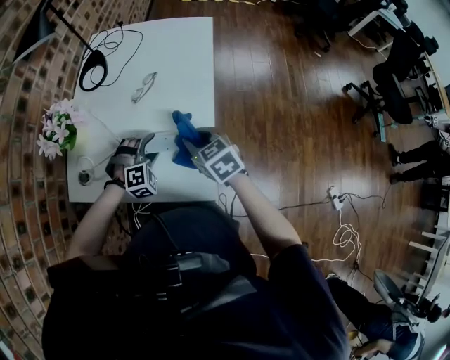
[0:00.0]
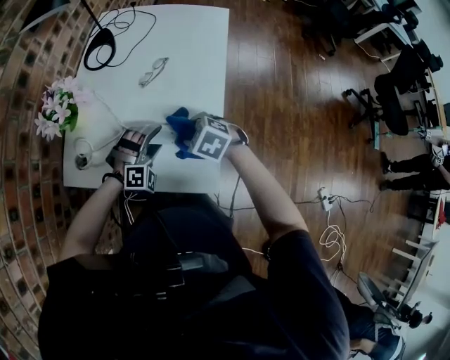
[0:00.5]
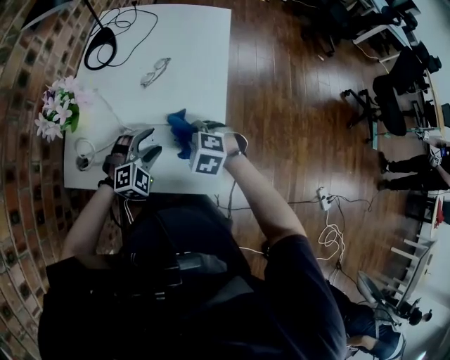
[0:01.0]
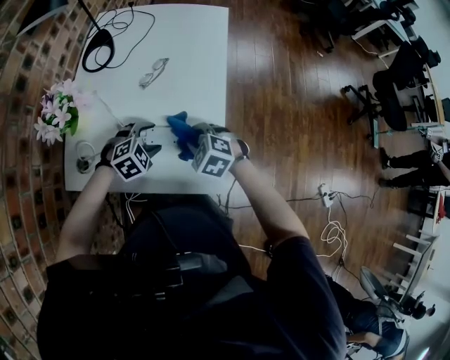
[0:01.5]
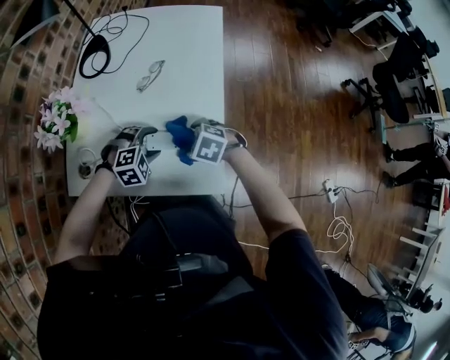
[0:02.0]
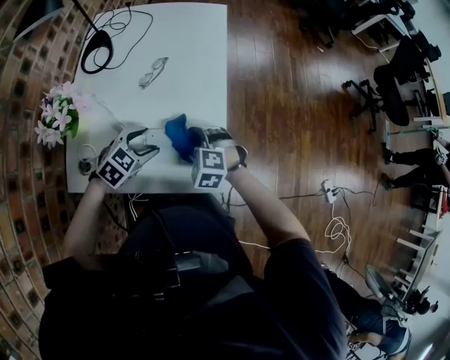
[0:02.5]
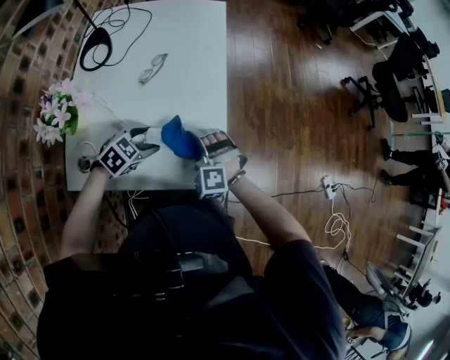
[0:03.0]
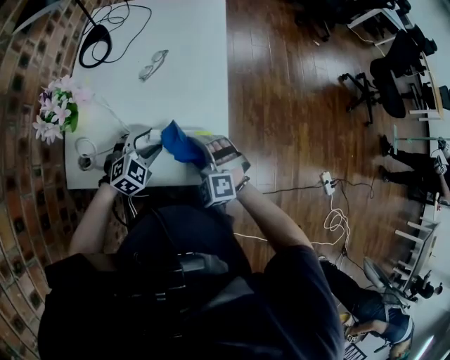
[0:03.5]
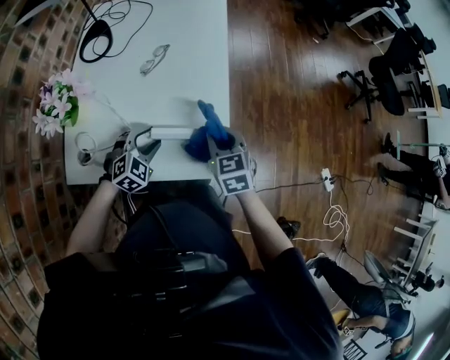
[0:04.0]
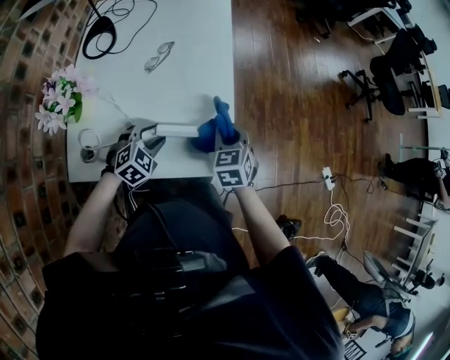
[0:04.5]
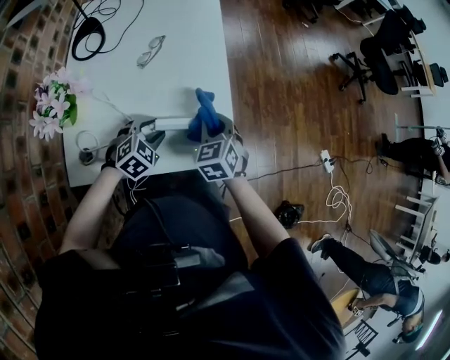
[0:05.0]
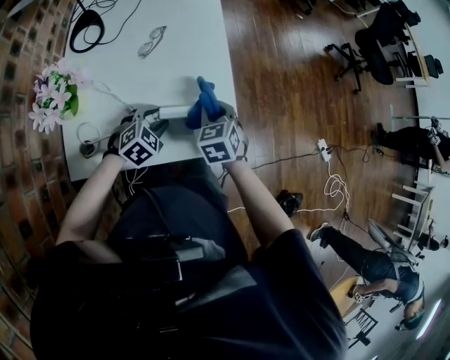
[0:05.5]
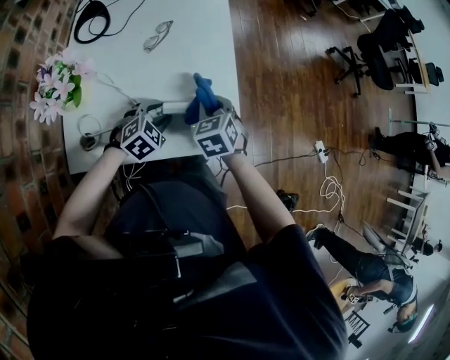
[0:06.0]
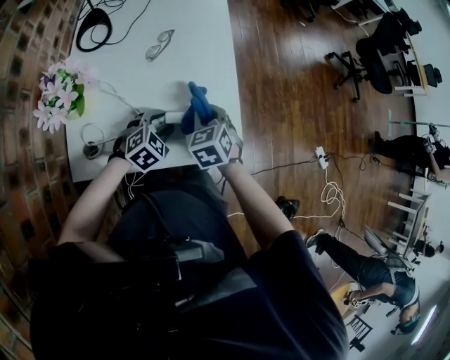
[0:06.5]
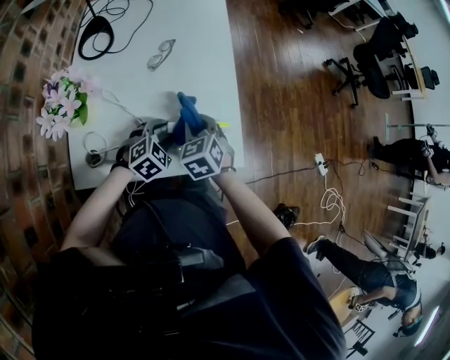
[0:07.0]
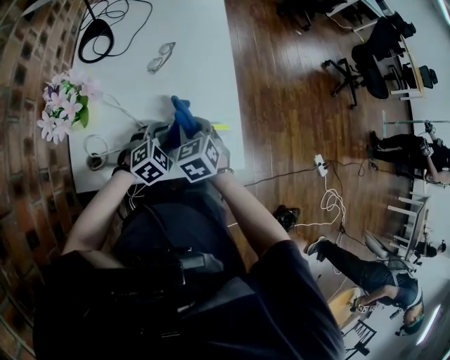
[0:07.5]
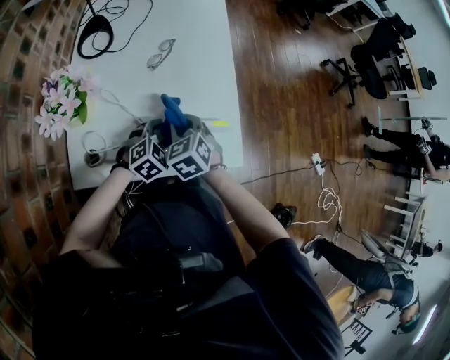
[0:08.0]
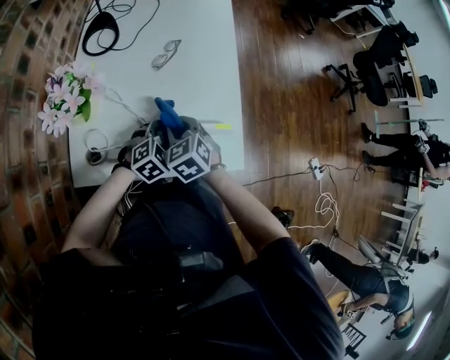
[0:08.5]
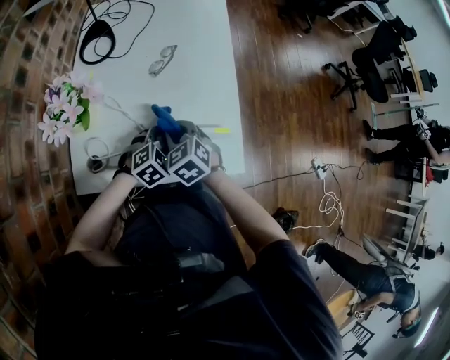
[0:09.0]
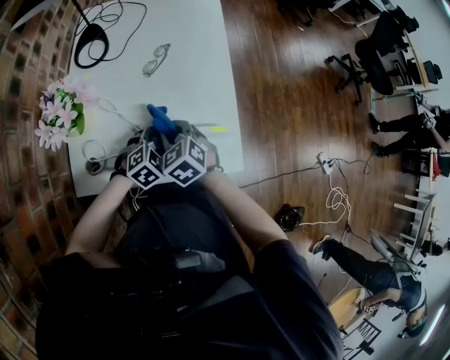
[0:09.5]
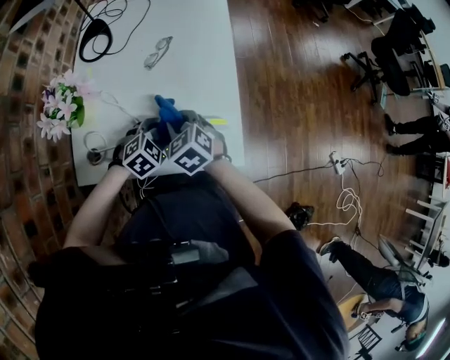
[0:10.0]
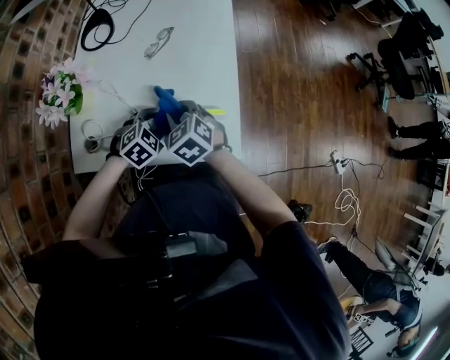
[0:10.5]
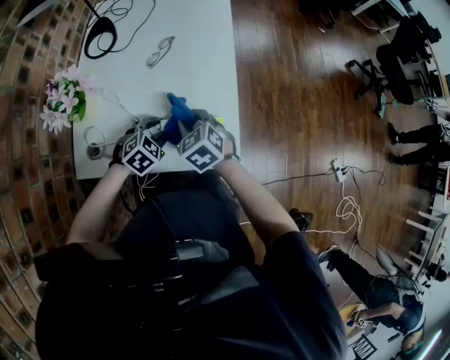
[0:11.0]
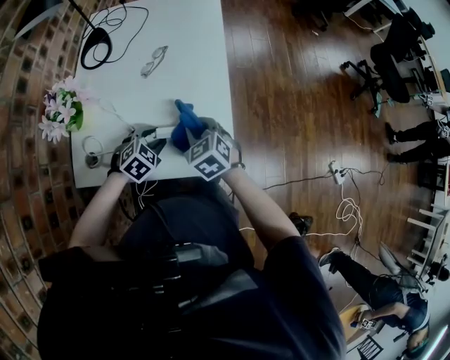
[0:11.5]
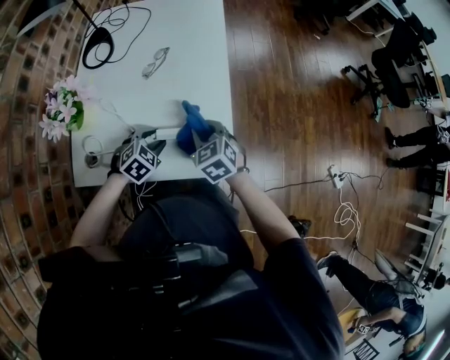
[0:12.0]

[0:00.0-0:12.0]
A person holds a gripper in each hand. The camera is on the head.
0:00.0 to 0:02.0: The left gripper rotates some 20 degrees; the right gripper is displaced downward by about 10 cm, turns by approximately 40 degrees, and opens.
0:02.0 to 0:04.0: The right gripper heads upward, covering approximately 10 cm, turns by approximately 60 degrees, and closes up. The left gripper swivels some 20 degrees.
0:04.0 to 0:06.0: The right gripper heads to the left, covering some 5 cm.
0:06.0 to 0:08.0: The right gripper heads to the left, covering about 10 cm.
0:08.0 to 0:10.0: The grippers move only a little.
0:10.0 to 0:12.0: The right gripper moves to the right, approximately 10 cm.

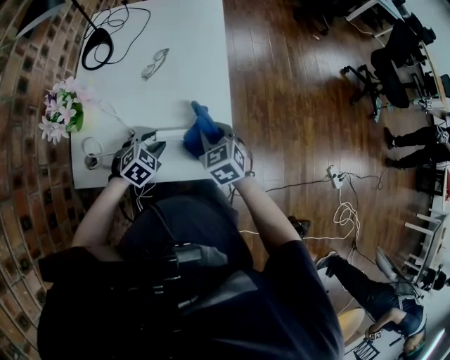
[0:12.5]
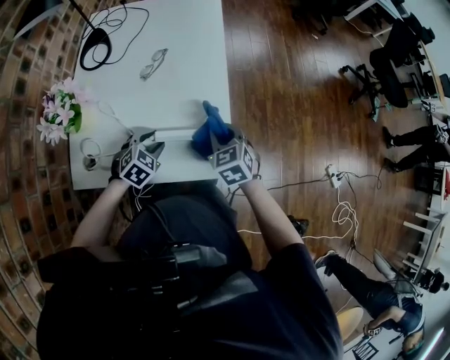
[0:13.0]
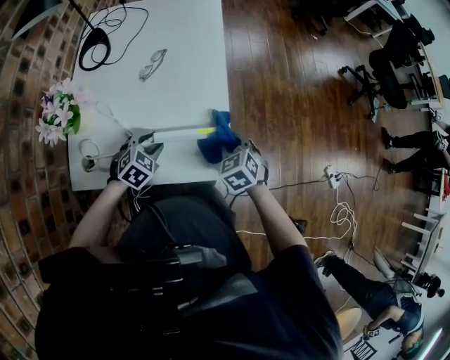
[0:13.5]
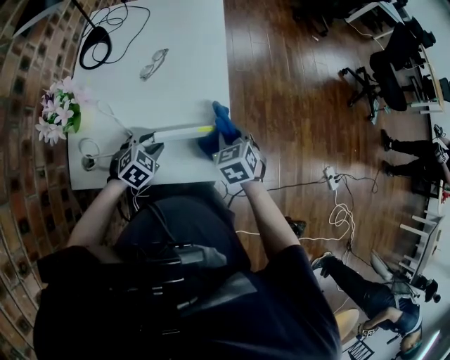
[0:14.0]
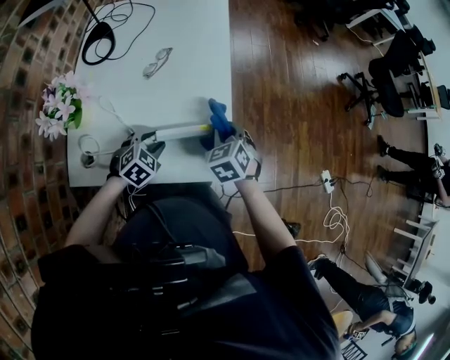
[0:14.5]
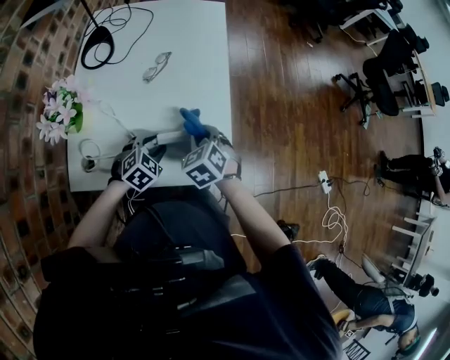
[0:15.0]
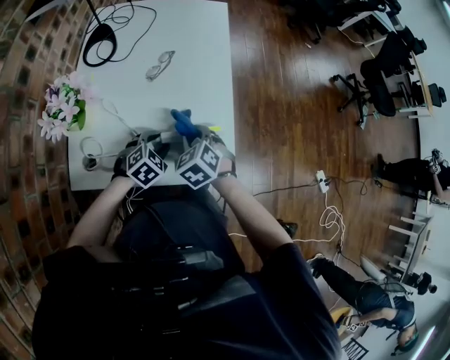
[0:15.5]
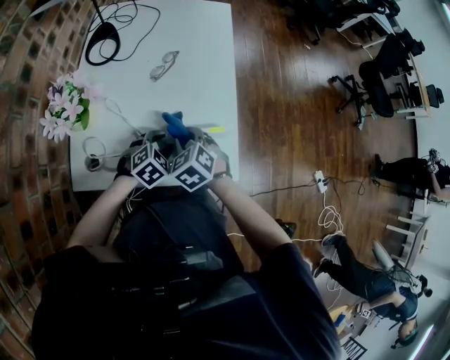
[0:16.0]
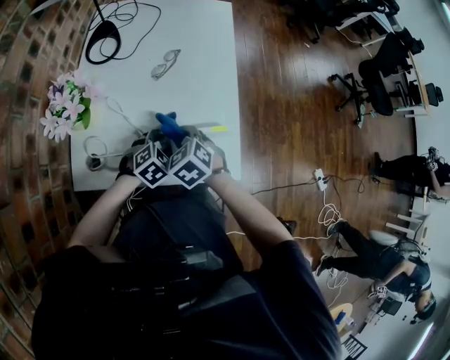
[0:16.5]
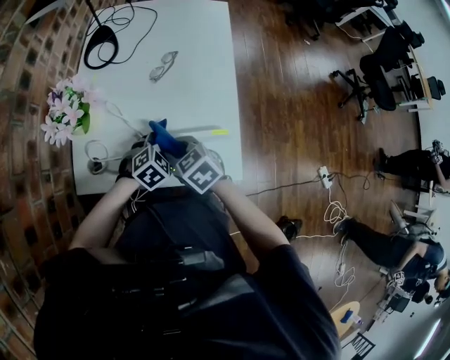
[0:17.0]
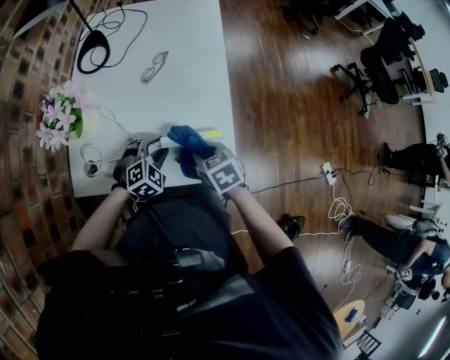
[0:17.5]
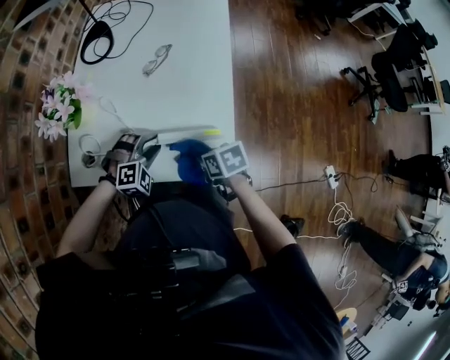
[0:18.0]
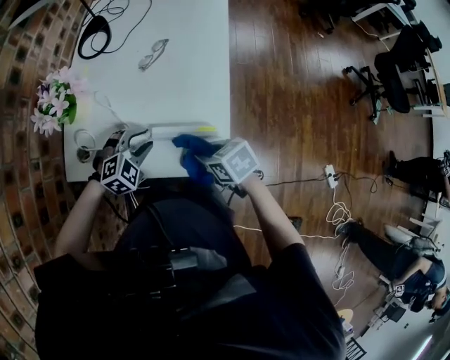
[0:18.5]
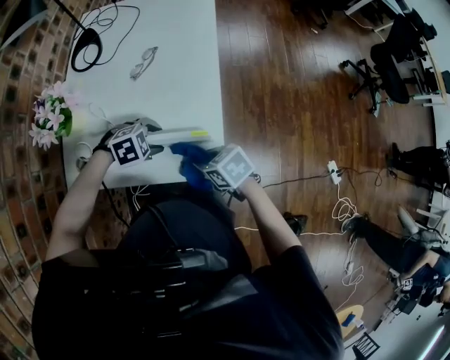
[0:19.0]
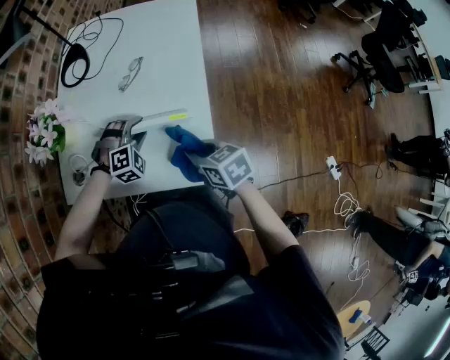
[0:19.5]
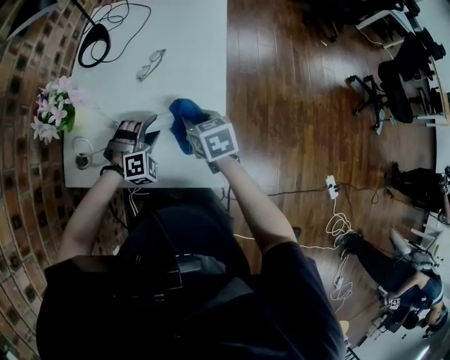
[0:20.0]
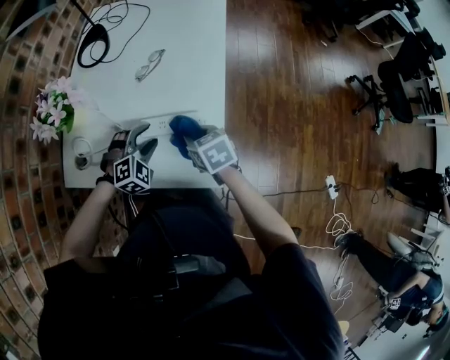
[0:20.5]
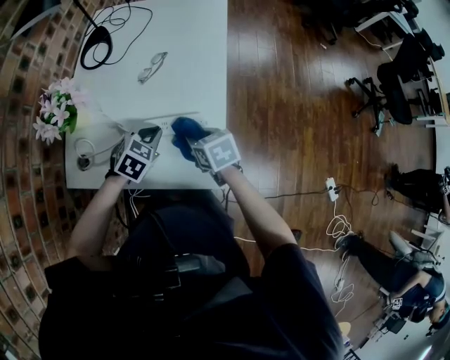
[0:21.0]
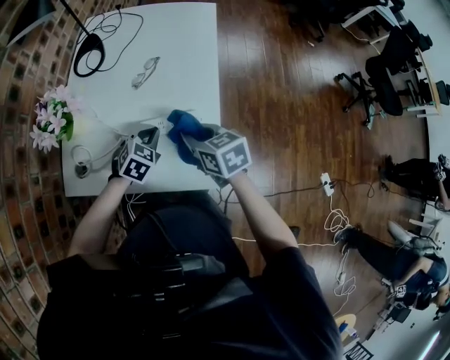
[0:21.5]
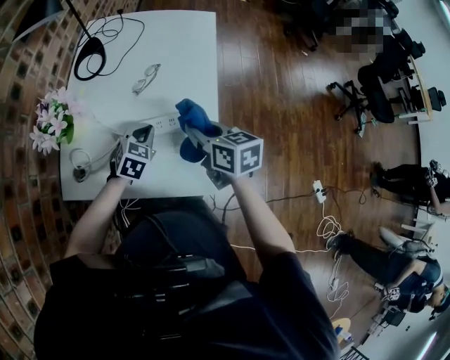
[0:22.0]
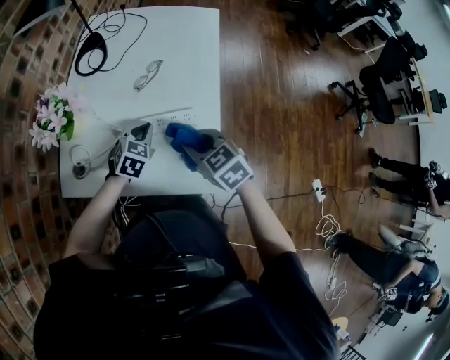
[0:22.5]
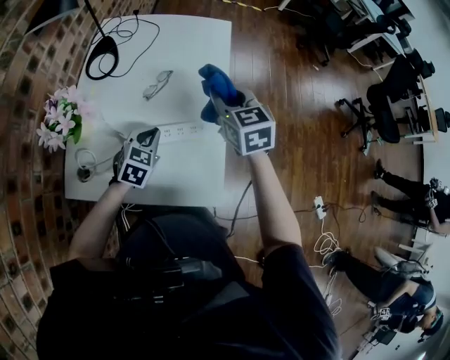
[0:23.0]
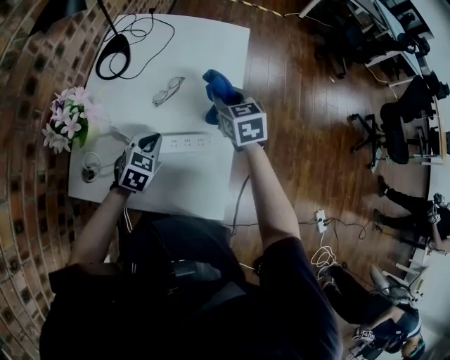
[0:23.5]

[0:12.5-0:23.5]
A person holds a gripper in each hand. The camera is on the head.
0:14.5 to 0:16.0: The right gripper shifts approximately 15 cm to the left.
0:16.0 to 0:18.0: The left gripper turns by about 30 degrees, while the right gripper shifts by approximately 15 cm, and rotates around the line of its fingers by some 40 degrees, clockwise from behind.
0:18.0 to 0:20.0: The left gripper changes place by approximately 10 cm. Meanwhile the right gripper shifts by roughly 15 cm, and turns by some 30 degrees.
0:20.0 to 0:21.5: The left gripper rolls counterclockwise, seen from behind, by about 50 degrees, and closes; the right gripper moves approximately 5 cm.
0:21.5 to 0:23.5: The right gripper shifts some 20 cm forward, and swivels some 20 degrees, while the left gripper is displaced forward by about 5 cm.

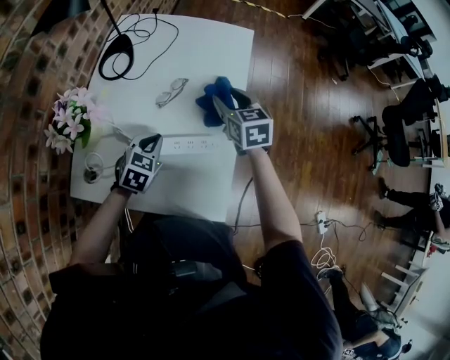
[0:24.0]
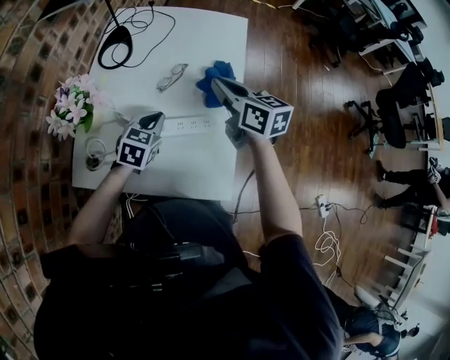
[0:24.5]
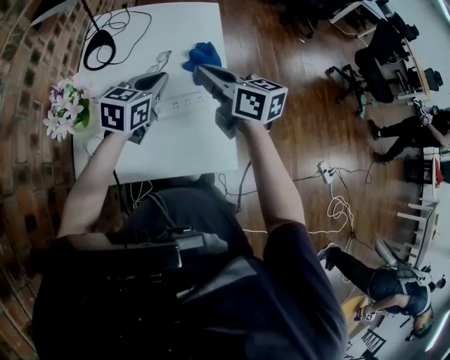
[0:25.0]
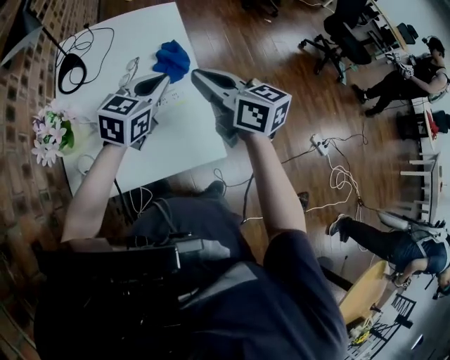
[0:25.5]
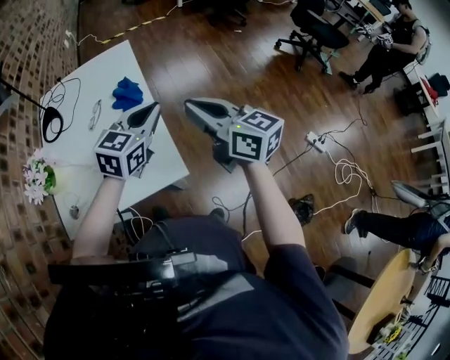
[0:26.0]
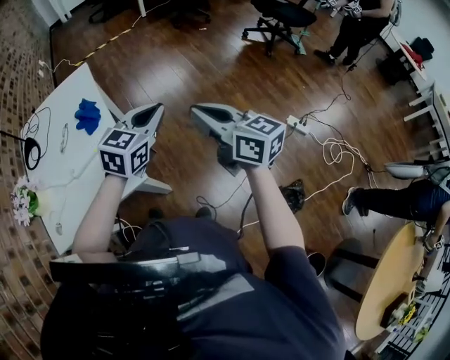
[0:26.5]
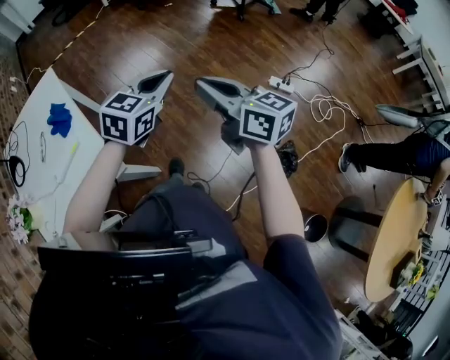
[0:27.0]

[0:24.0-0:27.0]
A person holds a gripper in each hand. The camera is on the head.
0:24.0 to 0:25.5: The right gripper goes roughly 25 cm backward and upward, swivels approximately 30 degrees, and closes up, while the left gripper is displaced upward and to the right by roughly 20 cm, and swivels some 40 degrees.
0:25.5 to 0:27.0: Both grippers are carried roughly 50 cm. The right gripper rotates roughly 30 degrees. The left gripper rotates about 30 degrees.

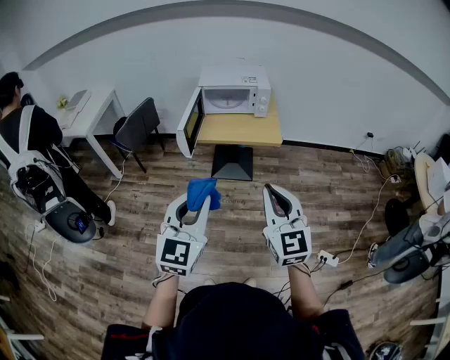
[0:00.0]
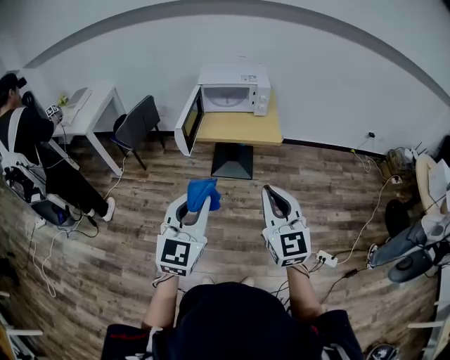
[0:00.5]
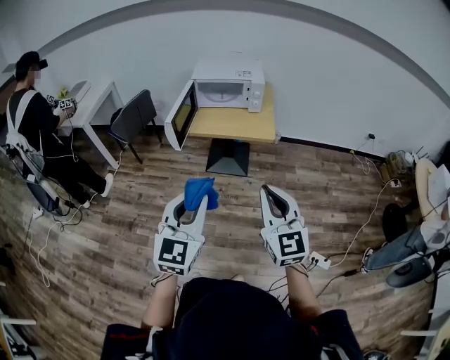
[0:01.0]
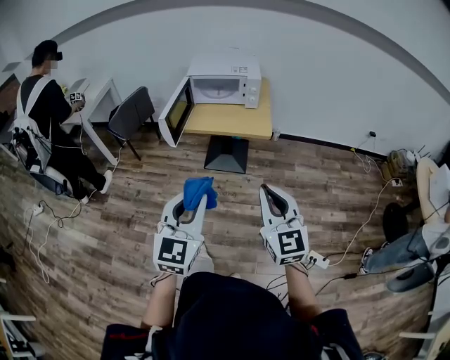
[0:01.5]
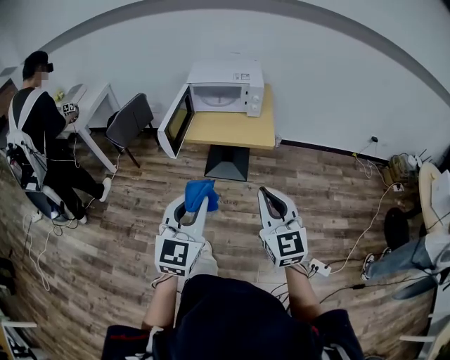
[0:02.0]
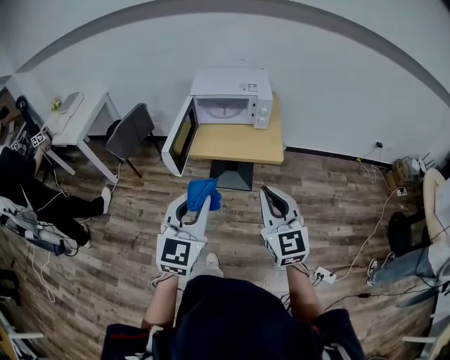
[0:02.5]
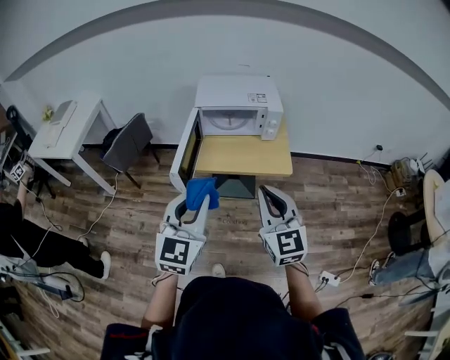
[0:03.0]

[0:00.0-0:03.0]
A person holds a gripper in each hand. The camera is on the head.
0:00.0 to 0:01.5: Both grippers move to the right, roughly 10 cm.
0:01.5 to 0:03.0: The grippers both shift forward and to the left by approximately 30 cm.
